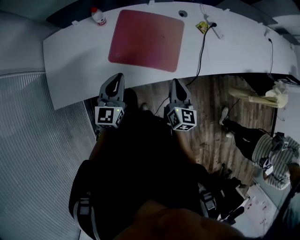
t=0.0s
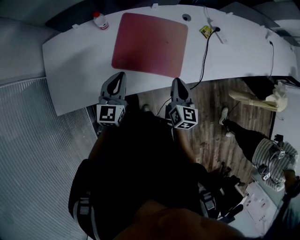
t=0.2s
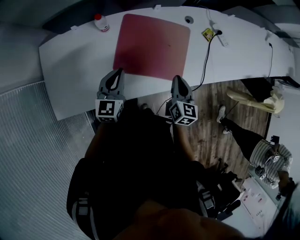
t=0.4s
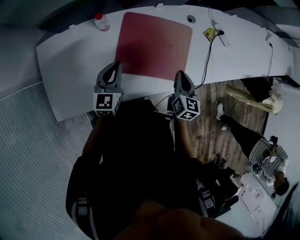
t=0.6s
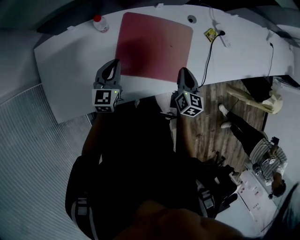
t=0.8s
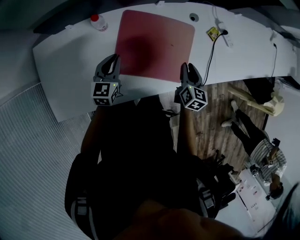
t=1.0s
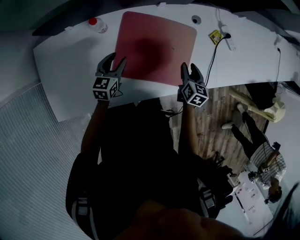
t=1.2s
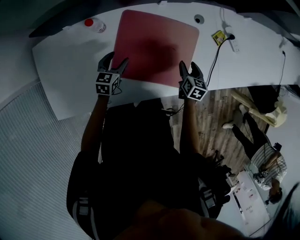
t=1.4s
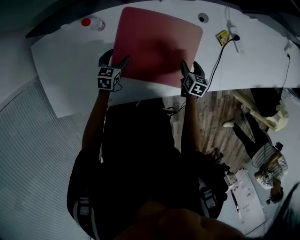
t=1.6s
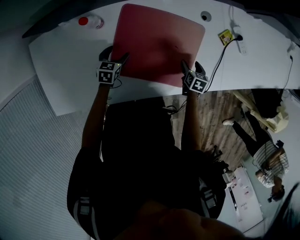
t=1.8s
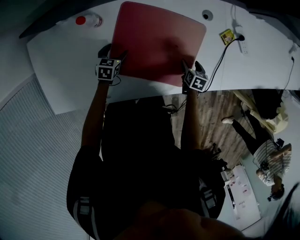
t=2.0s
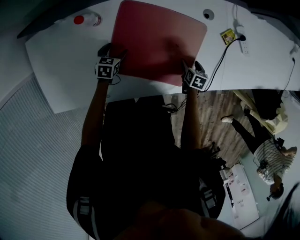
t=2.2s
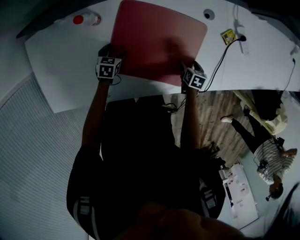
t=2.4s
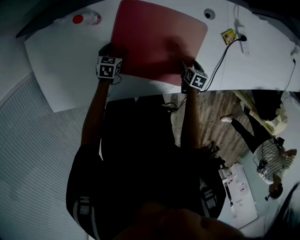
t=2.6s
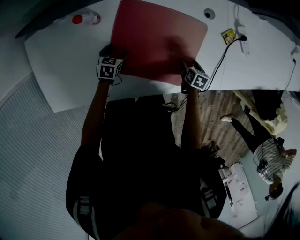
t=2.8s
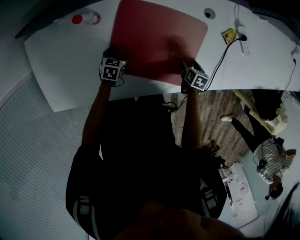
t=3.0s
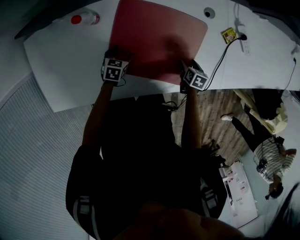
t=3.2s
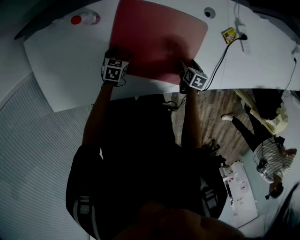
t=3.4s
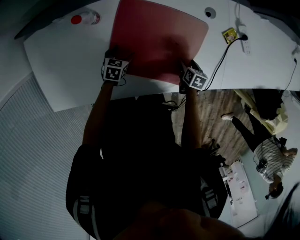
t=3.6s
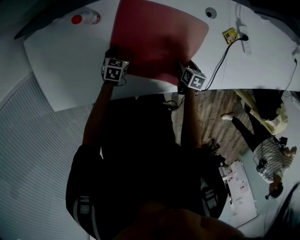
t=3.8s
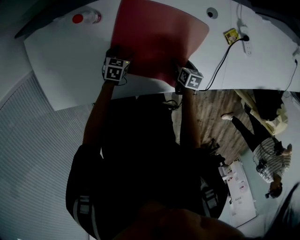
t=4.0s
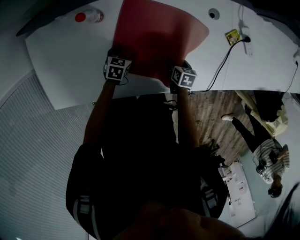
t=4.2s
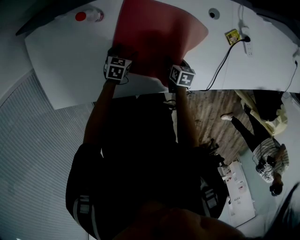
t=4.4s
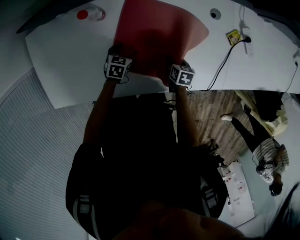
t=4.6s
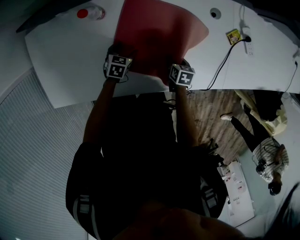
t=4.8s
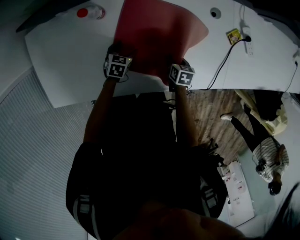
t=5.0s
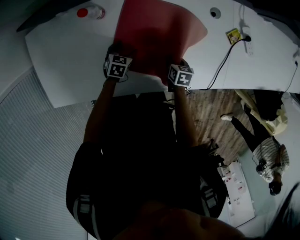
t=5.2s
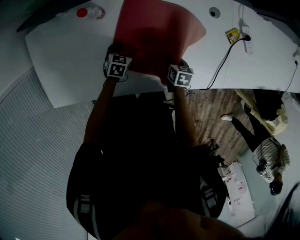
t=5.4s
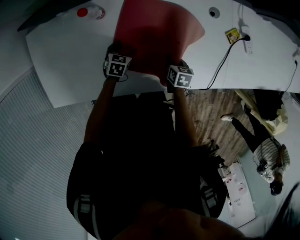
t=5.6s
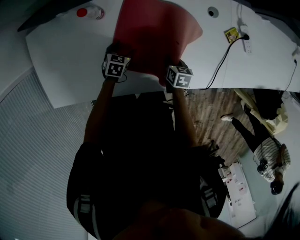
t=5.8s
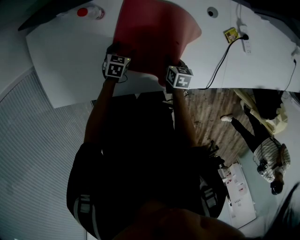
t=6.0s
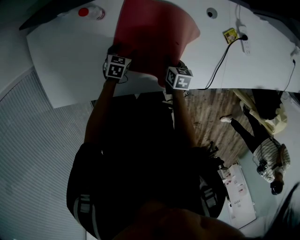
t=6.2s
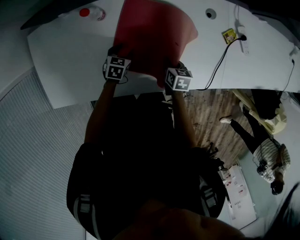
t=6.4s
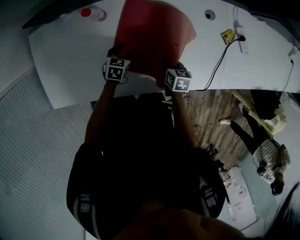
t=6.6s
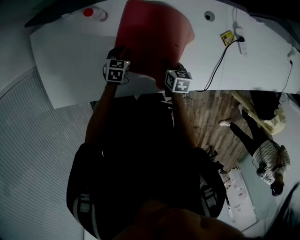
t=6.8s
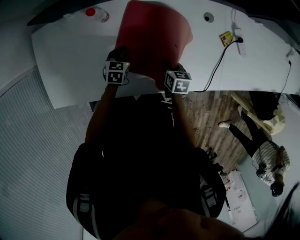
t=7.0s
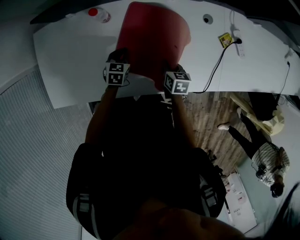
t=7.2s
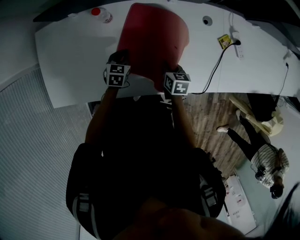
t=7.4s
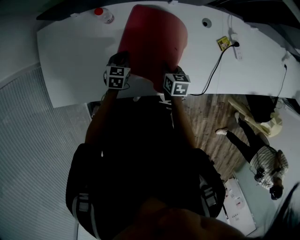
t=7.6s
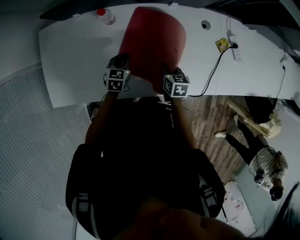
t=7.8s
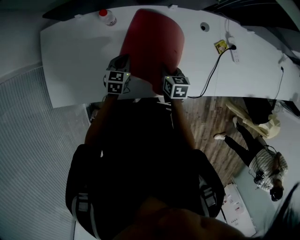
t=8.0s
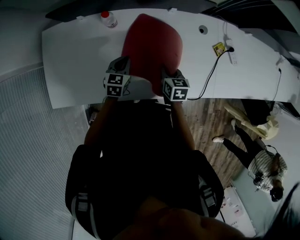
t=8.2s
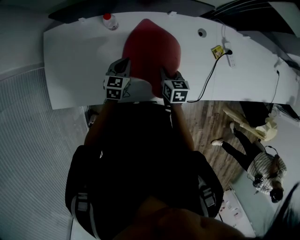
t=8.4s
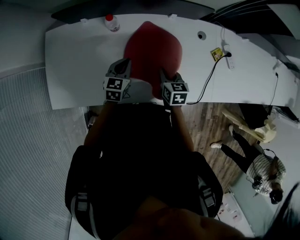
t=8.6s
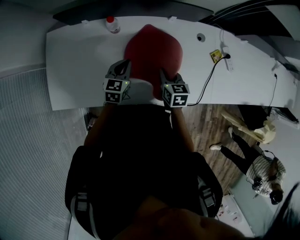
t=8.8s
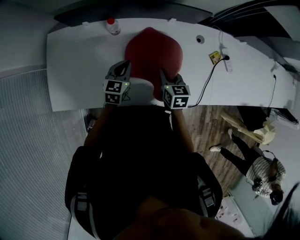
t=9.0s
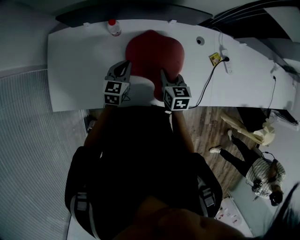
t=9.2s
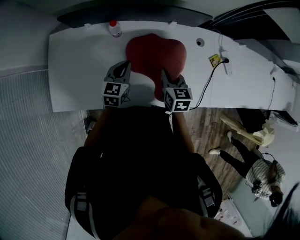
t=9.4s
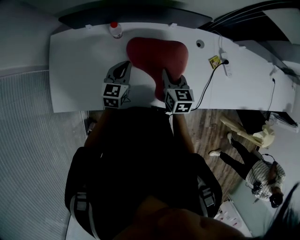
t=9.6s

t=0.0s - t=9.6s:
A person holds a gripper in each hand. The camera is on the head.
t=0.0s - t=1.6s: The right gripper travels forward and downward by about 35 cm, angles its fingers downward, by roughly 30 degrees, and opens its fingers, while the left gripper travels downward and forward by approximately 35 cm, tips its fingers downward by approximately 30 degrees, and opens up.
t=1.6s - t=3.2s: The two grippers go approximately 10 cm downward.
t=3.2s - t=4.8s: The right gripper goes approximately 10 cm to the left, and closes its fingers.
t=4.8s - t=6.4s: The right gripper heads upward, covering roughly 5 cm, and closes up.
t=6.4s - t=8.0s: The grippers both shift upward by approximately 10 cm. The left gripper closes its fingers.
t=8.0s - t=9.6s: The grippers both shift upward by roughly 15 cm.

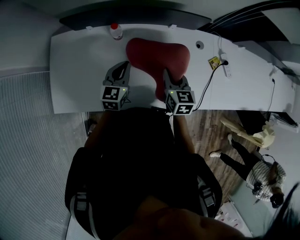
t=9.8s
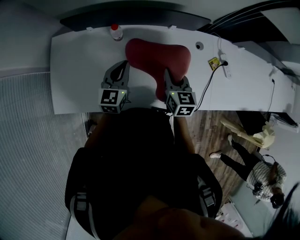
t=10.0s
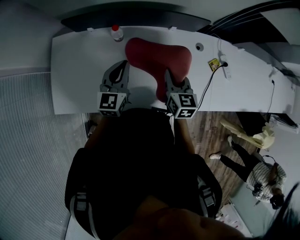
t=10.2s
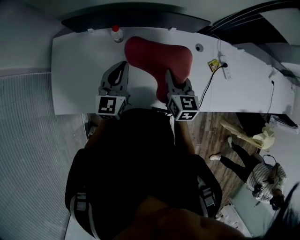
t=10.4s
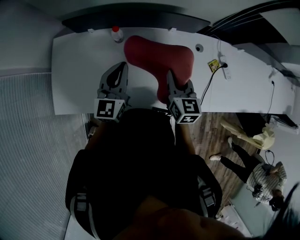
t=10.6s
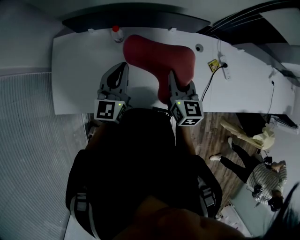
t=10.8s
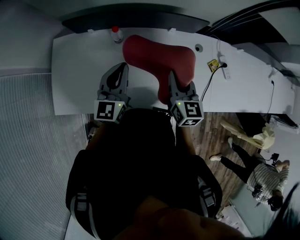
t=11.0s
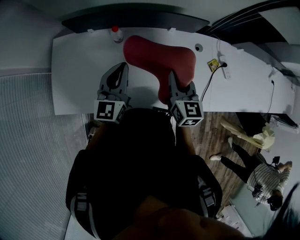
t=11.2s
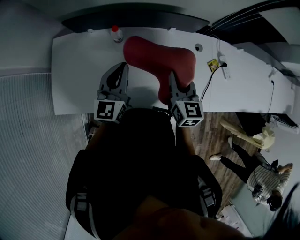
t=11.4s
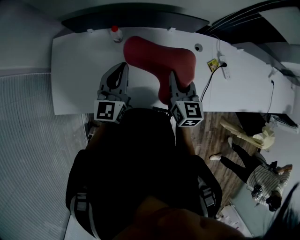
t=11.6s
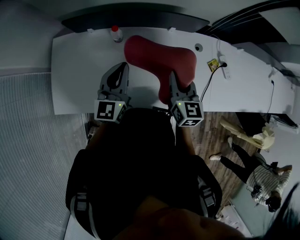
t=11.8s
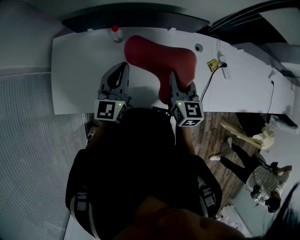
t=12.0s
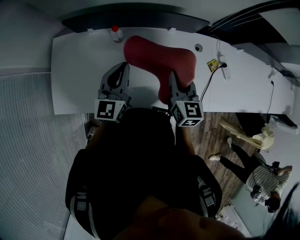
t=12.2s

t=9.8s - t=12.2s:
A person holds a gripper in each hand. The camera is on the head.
t=9.8s - t=11.0s: The right gripper travels upward by about 10 cm; the left gripper moves upward, approximately 15 cm.
t=11.0s - t=12.2s: Both grippers stay put.

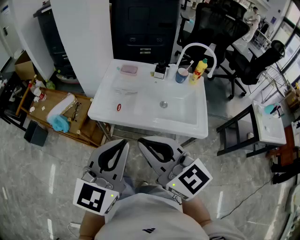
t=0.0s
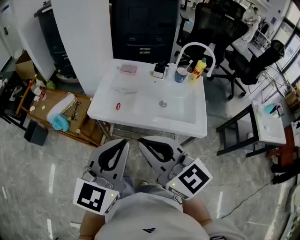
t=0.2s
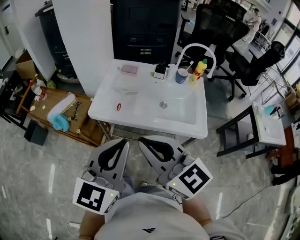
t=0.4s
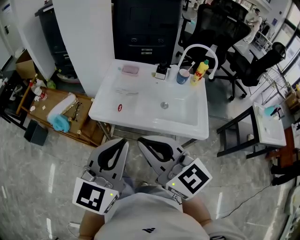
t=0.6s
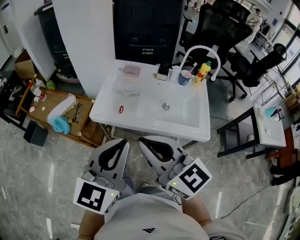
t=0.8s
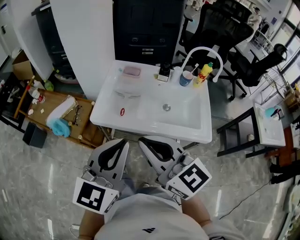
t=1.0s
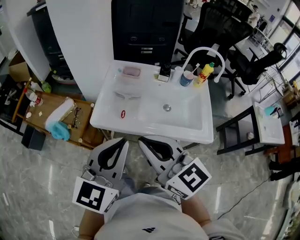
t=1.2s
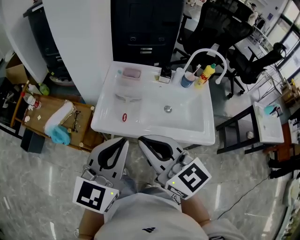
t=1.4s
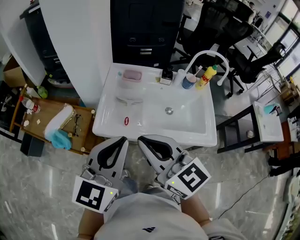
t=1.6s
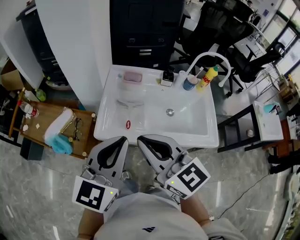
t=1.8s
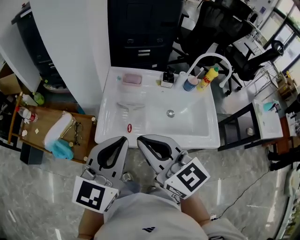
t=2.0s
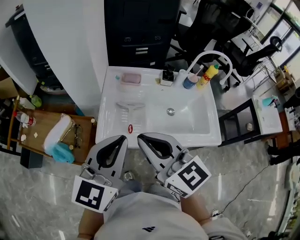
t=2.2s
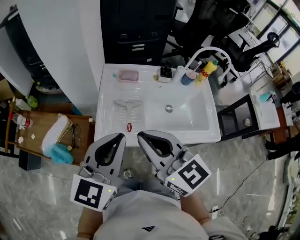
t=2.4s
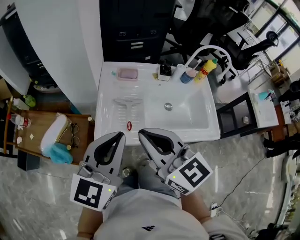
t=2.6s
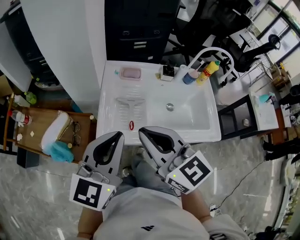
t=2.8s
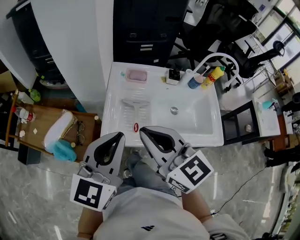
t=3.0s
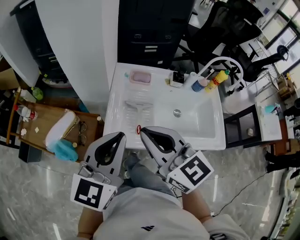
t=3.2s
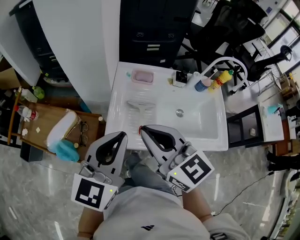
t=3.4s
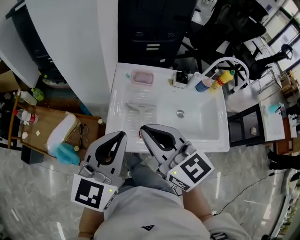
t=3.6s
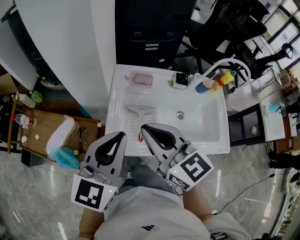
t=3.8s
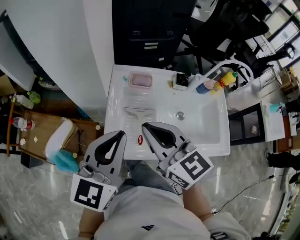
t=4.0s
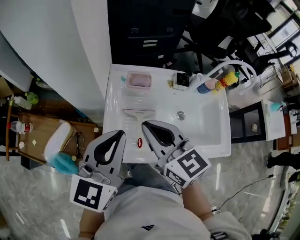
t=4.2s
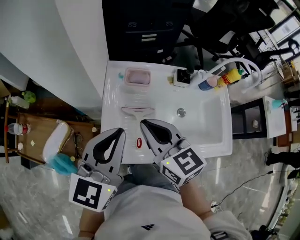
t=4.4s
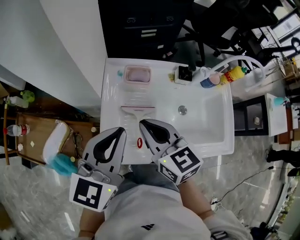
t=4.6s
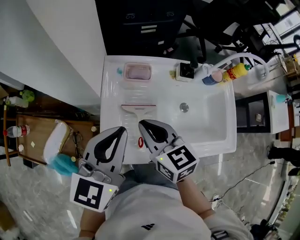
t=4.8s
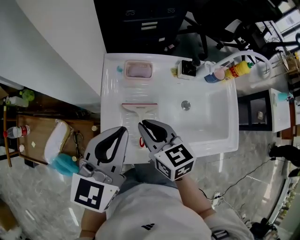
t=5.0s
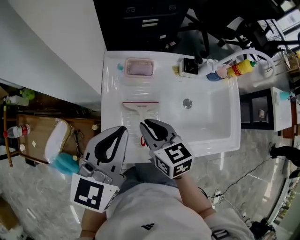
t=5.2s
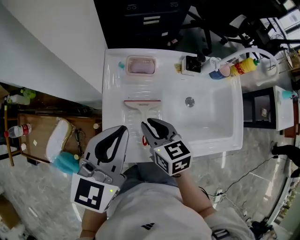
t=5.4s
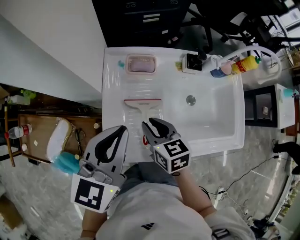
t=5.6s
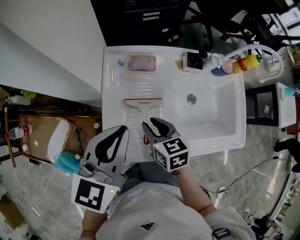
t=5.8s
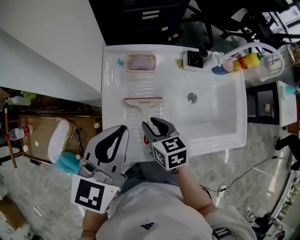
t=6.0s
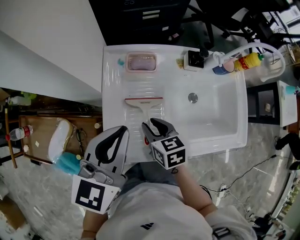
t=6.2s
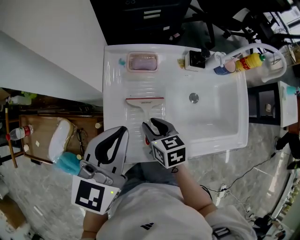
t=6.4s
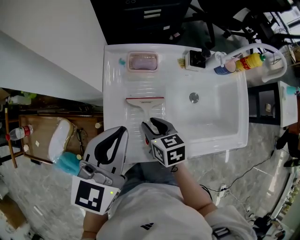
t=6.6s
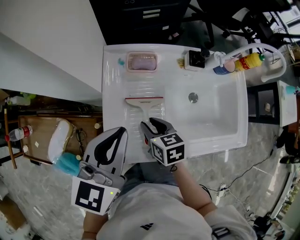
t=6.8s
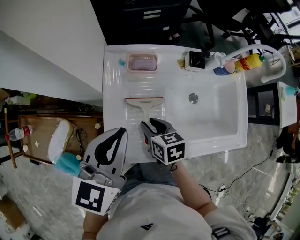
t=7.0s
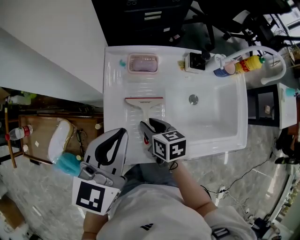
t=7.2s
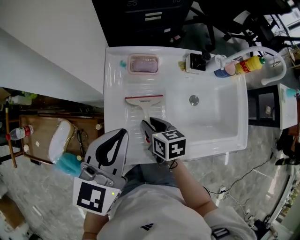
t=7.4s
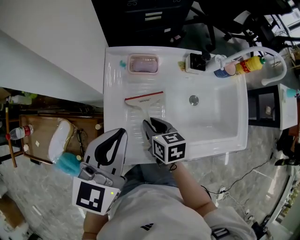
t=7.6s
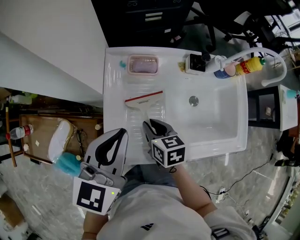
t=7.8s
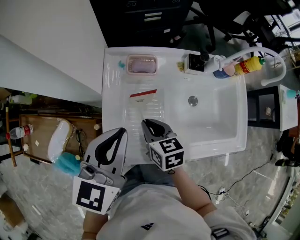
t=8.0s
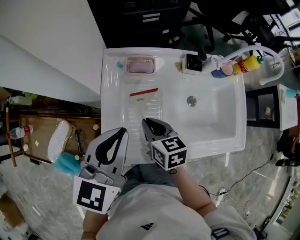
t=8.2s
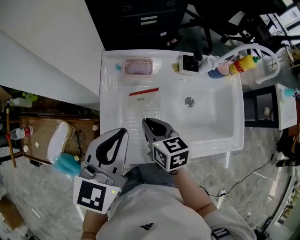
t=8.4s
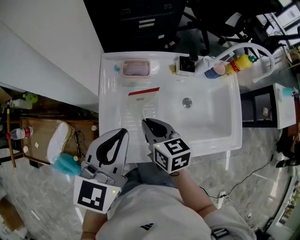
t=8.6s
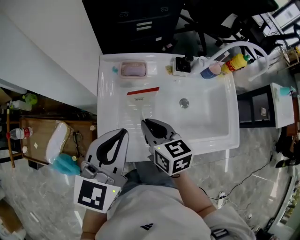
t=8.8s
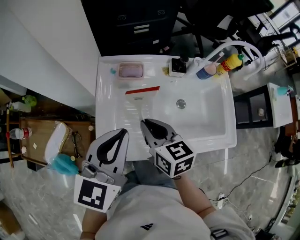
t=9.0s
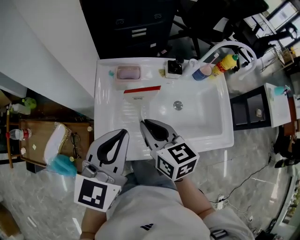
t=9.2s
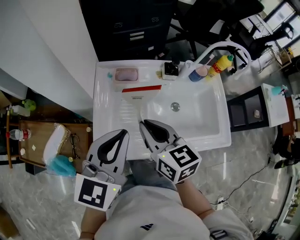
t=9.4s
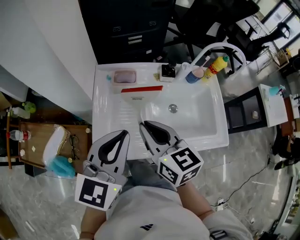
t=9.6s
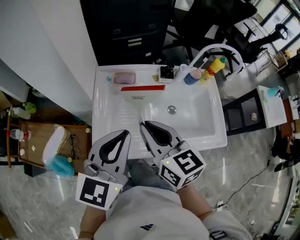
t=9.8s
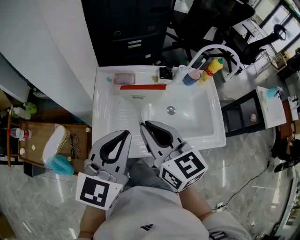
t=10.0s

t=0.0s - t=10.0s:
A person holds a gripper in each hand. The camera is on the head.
t=0.0s - t=1.4s: The grippers both shift forward by roughly 10 cm.
t=1.4s - t=2.8s: The grippers both shift forward and to the left by about 10 cm.
t=2.8s - t=4.2s: The grippers both shift forward by roughly 10 cm.
t=4.2s - t=5.8s: The right gripper travels downward by approximately 20 cm, turns by some 30 degrees, and opens. Meanwhile the left gripper is displaced downward by some 5 cm.
t=5.8s - t=7.2s: The grippers stay close to where they were, moving slightly.
t=7.2s - t=8.6s: The right gripper goes some 10 cm upward, and closes up.
t=8.6s - t=10.0s: The left gripper moves backward and upward, roughly 10 cm; the right gripper travels upward by some 15 cm, and turns by roughly 20 degrees.

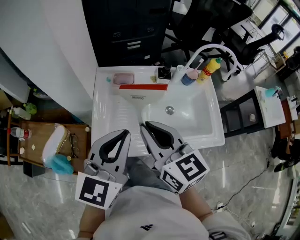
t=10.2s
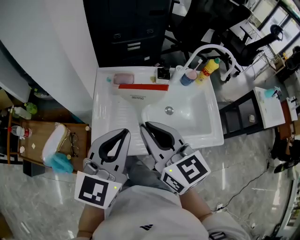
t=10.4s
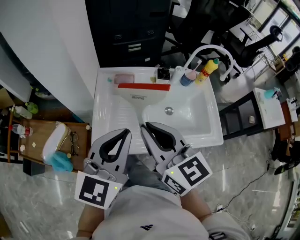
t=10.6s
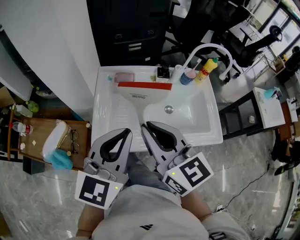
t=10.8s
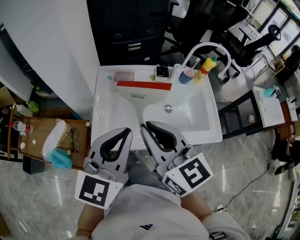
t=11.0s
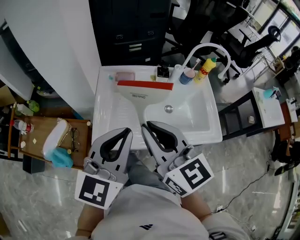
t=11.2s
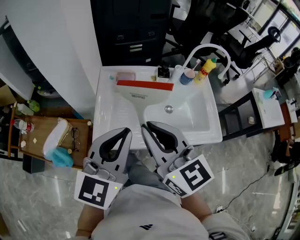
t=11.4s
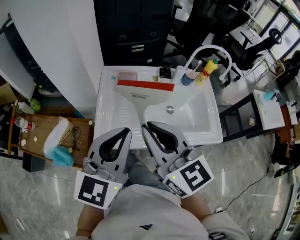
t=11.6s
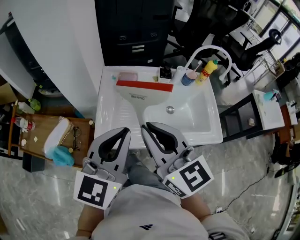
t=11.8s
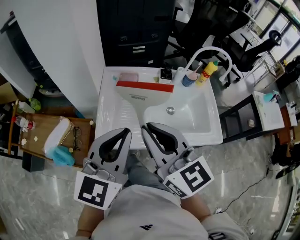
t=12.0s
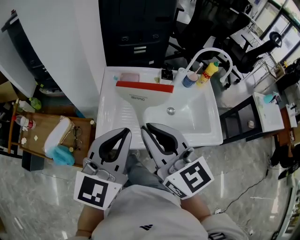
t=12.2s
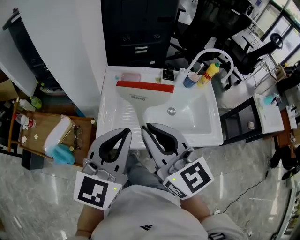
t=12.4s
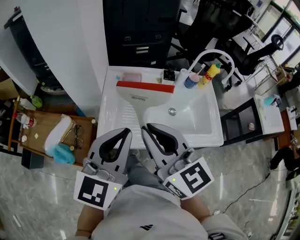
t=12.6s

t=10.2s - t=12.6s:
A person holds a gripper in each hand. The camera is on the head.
t=10.2s - t=11.4s: The left gripper ends up some 5 cm from where it was. The right gripper moves backward, approximately 5 cm.
t=11.4s - t=12.6s: The grippers stay close to where they were, moving slightly.
